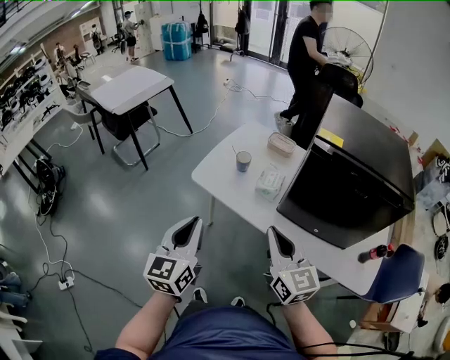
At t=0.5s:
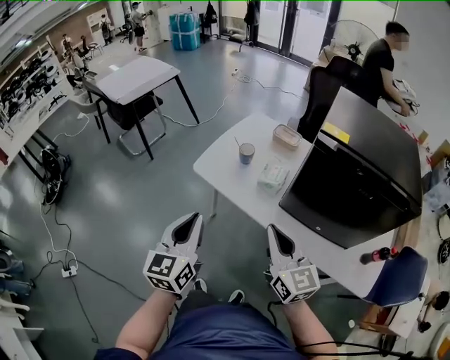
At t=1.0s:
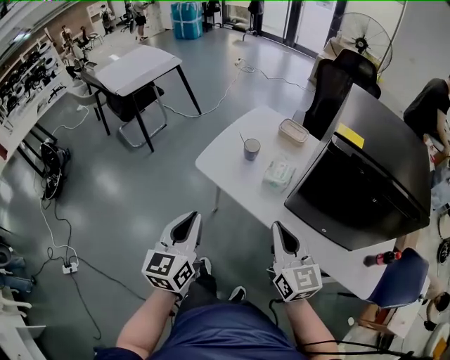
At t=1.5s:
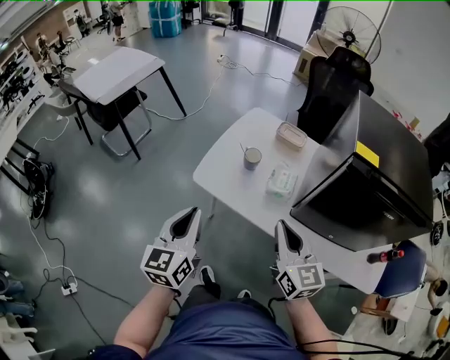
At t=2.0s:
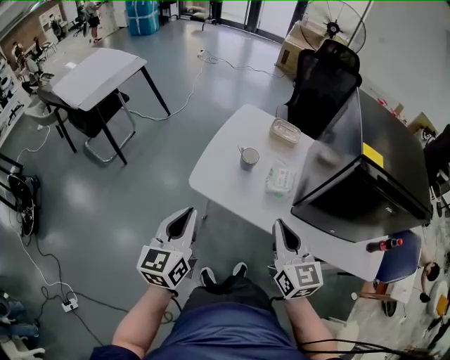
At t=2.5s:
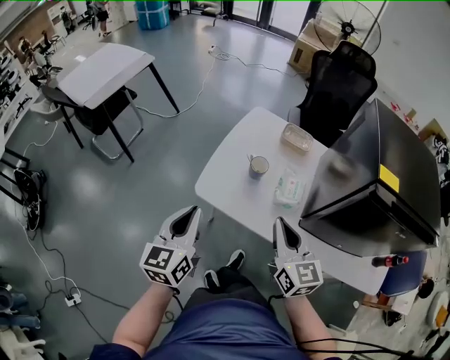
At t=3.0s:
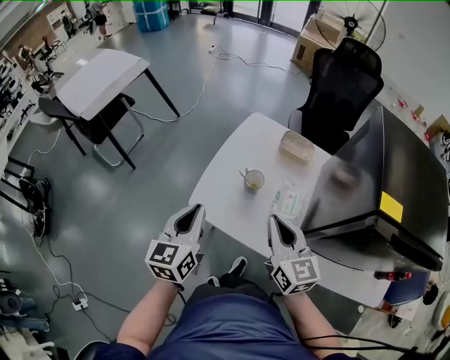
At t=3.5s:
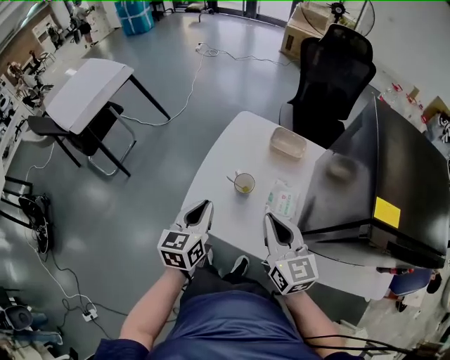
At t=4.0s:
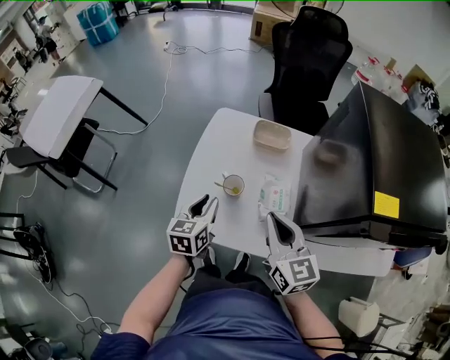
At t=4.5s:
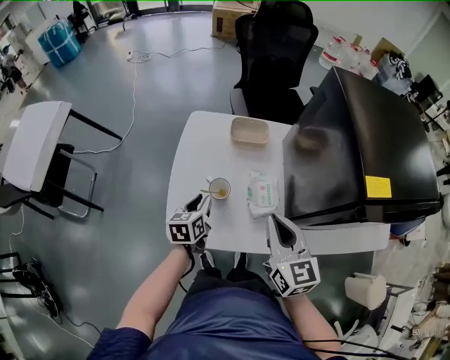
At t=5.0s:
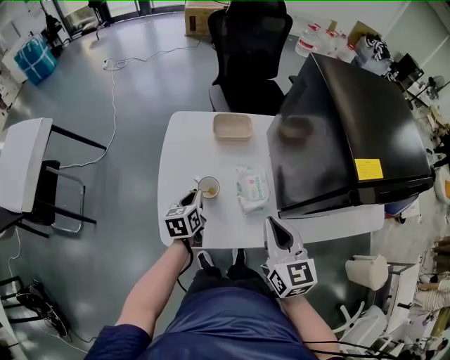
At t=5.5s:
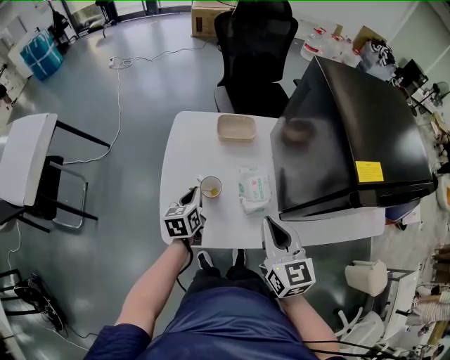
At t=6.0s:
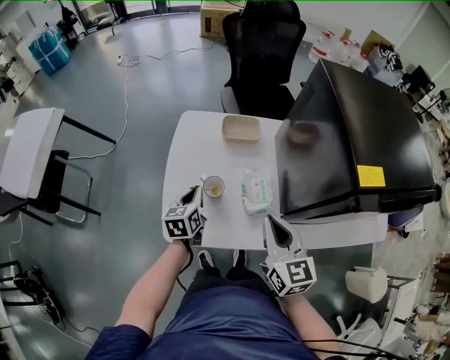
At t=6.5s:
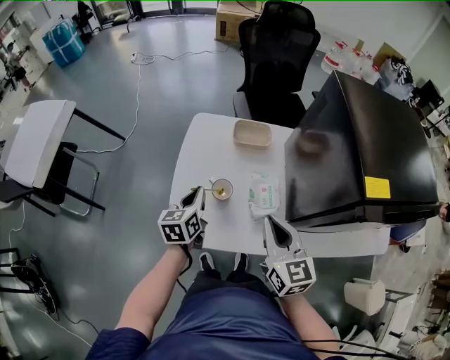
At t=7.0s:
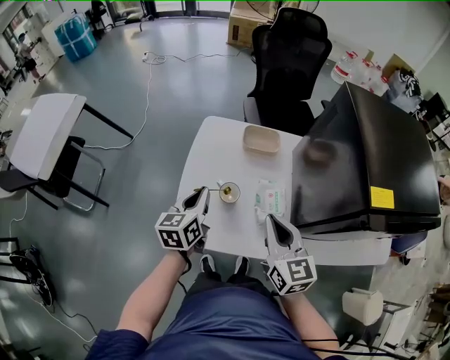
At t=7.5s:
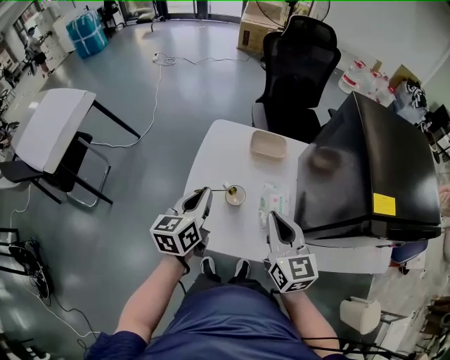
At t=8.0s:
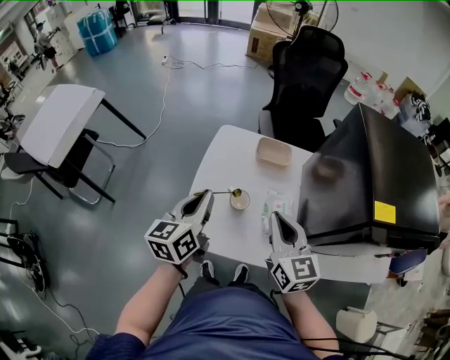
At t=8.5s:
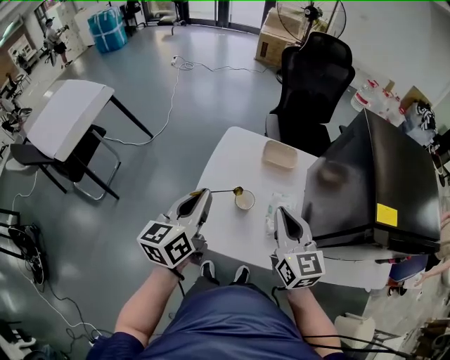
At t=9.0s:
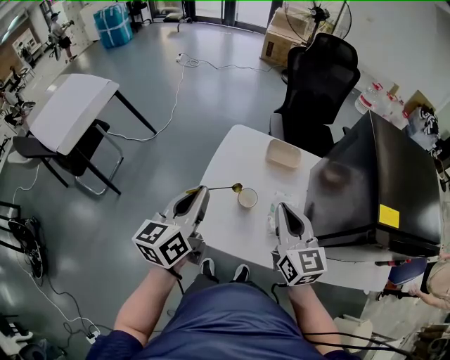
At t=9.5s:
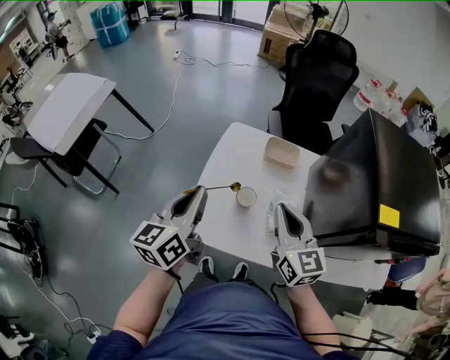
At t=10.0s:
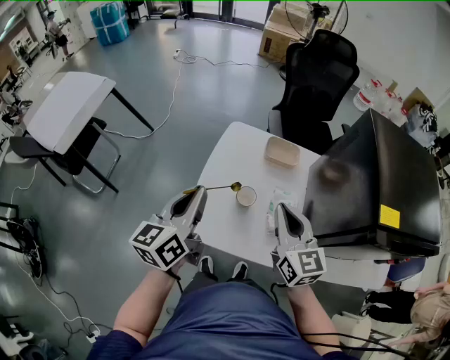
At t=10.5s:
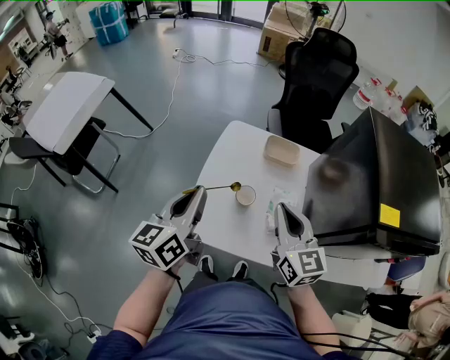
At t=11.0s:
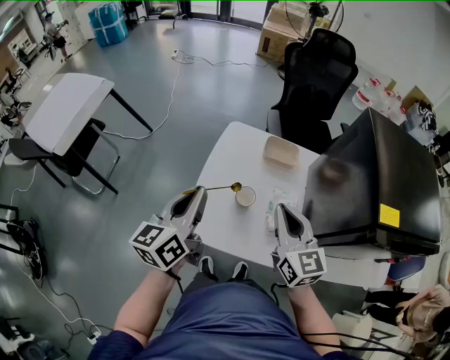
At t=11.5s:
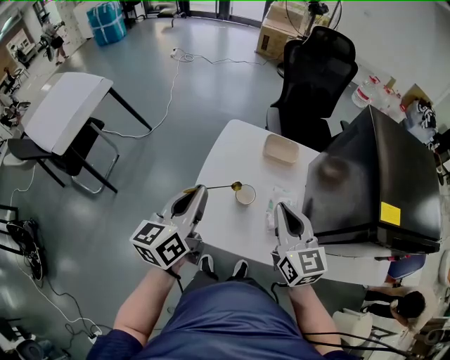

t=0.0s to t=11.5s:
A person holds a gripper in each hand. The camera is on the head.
t=0.0s to t=2.0s: The two grippers go about 15 cm forward and to the left.
t=2.0s to t=4.0s: The right gripper heads forward, covering some 20 cm. The left gripper is displaced forward, downward and to the right by some 30 cm, and swivels approximately 30 degrees.
t=4.0s to t=6.0s: The left gripper shifts roughly 5 cm forward.
t=6.0s to t=7.5s: The right gripper ends up some 5 cm from where it was. The left gripper is displaced upward by approximately 15 cm.
t=7.5s to t=9.5s: The left gripper shifts about 10 cm upward.
t=9.5s to t=11.5s: Neither gripper changes place.

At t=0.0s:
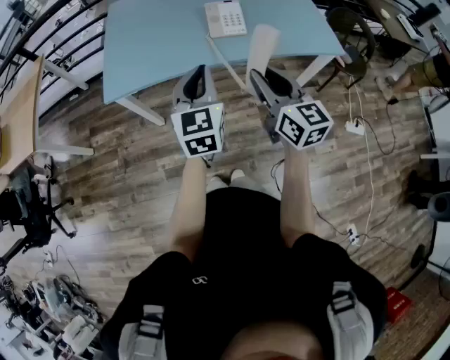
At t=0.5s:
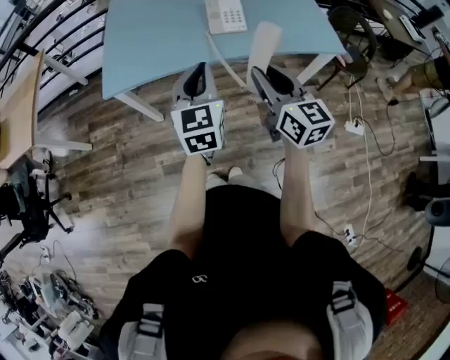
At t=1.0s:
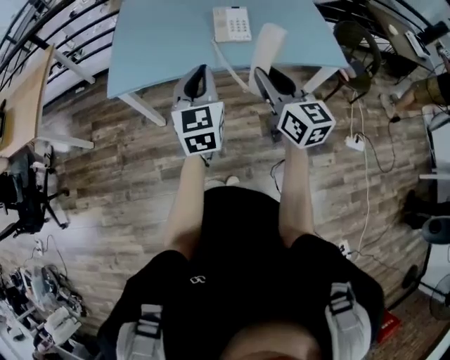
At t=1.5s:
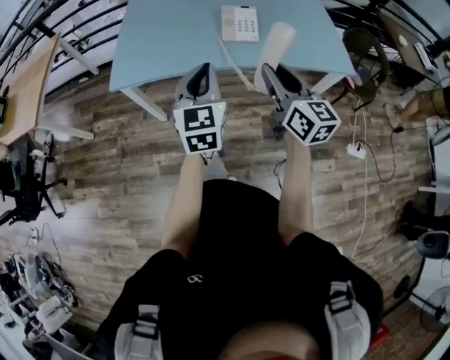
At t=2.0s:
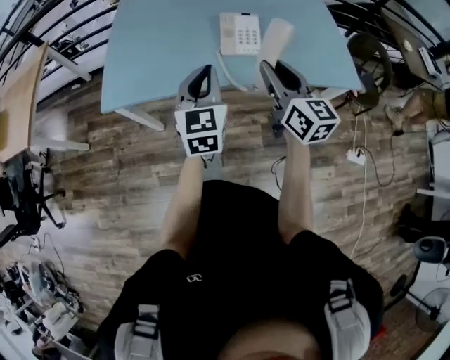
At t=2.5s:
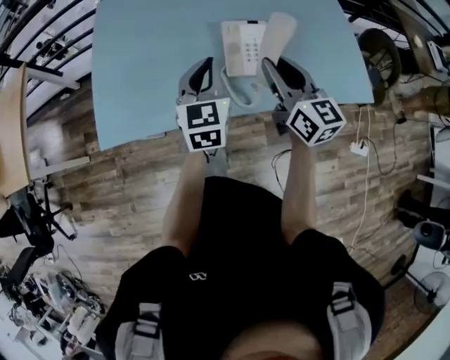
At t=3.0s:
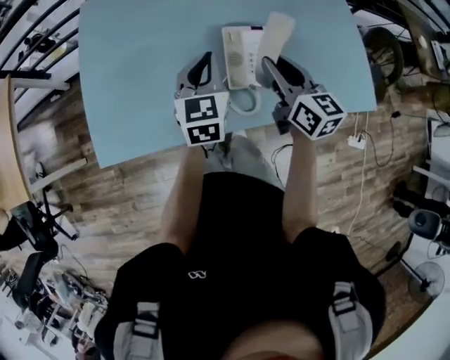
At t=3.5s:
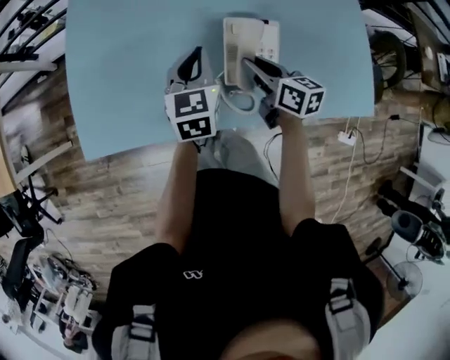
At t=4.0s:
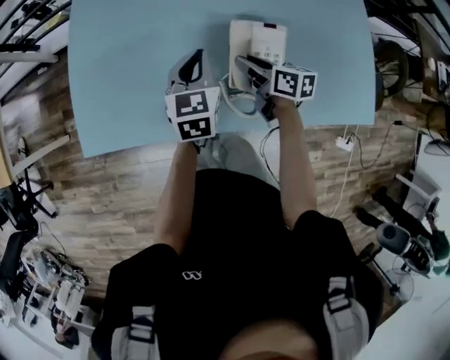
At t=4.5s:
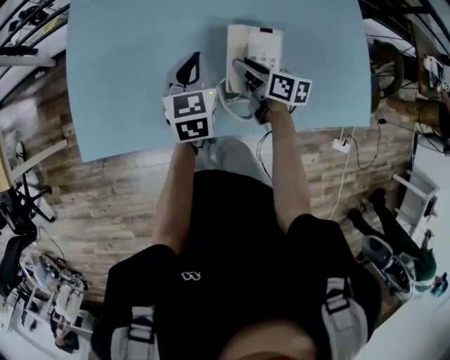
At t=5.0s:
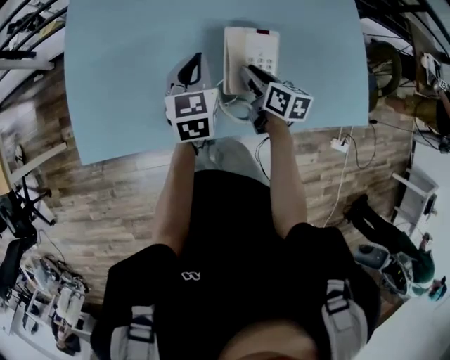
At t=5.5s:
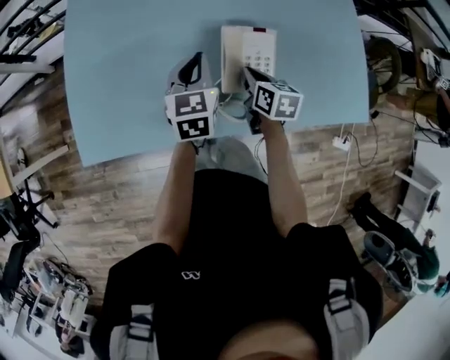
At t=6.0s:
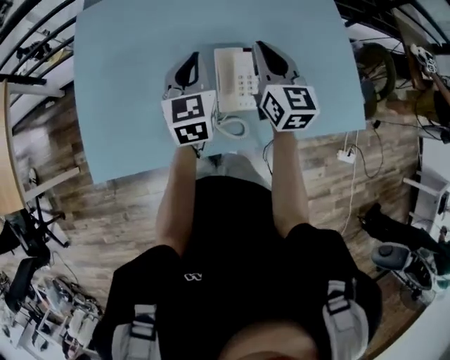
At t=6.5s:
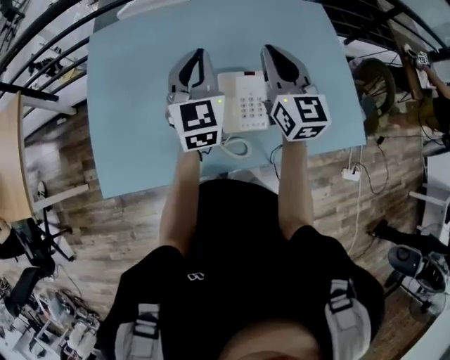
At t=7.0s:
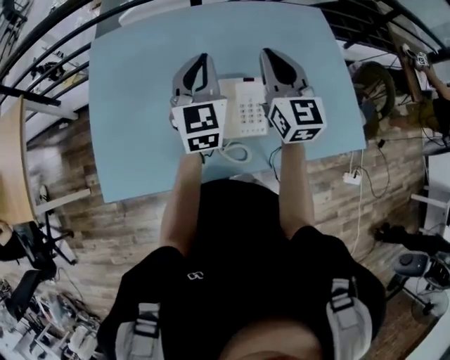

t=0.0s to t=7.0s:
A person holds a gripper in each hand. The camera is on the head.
t=0.0s to t=2.0s: Both grippers move forward, roughly 15 cm.
t=2.0s to t=3.5s: The left gripper travels forward by roughly 30 cm; the right gripper goes some 35 cm forward and downward, and turns by about 40 degrees.
t=3.5s to t=5.0s: The grippers make only small movements.
t=5.0s to t=7.0s: The right gripper travels upward by roughly 25 cm, tilts its fingers roughly 30 degrees upward, and closes. The left gripper travels upward by about 20 cm, and changes its angle by approximately 30 degrees.

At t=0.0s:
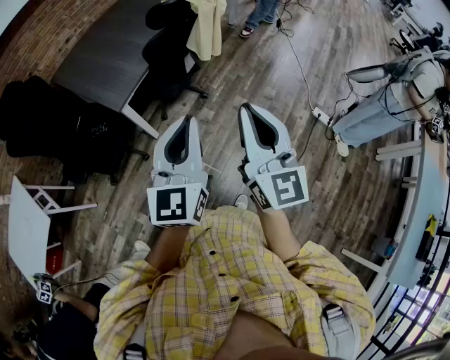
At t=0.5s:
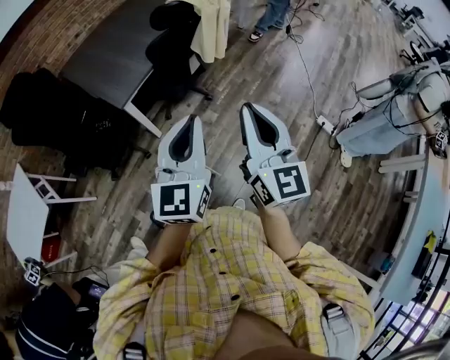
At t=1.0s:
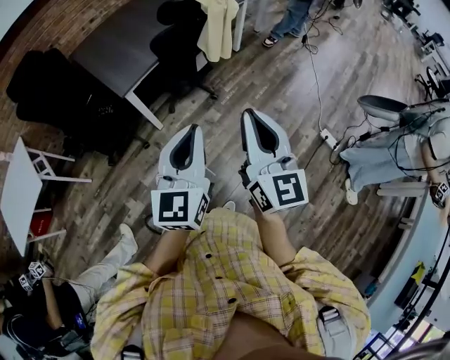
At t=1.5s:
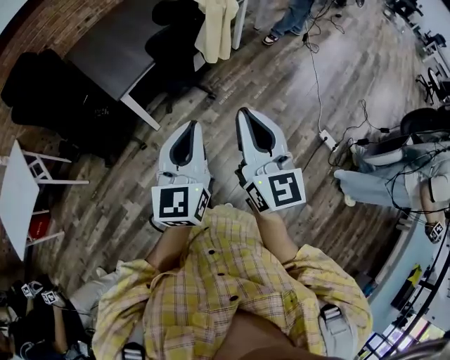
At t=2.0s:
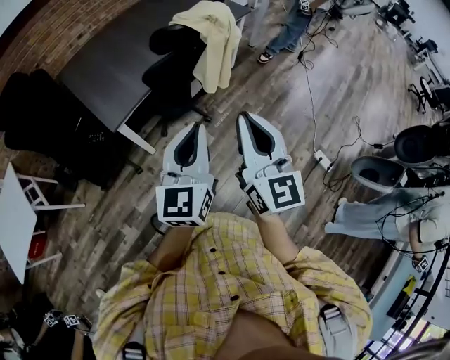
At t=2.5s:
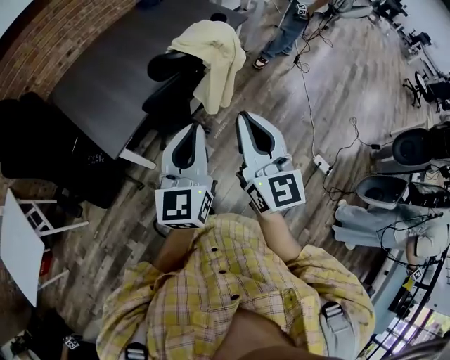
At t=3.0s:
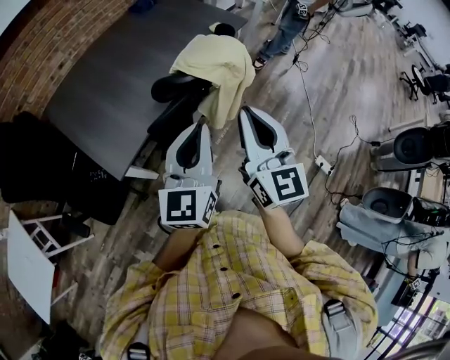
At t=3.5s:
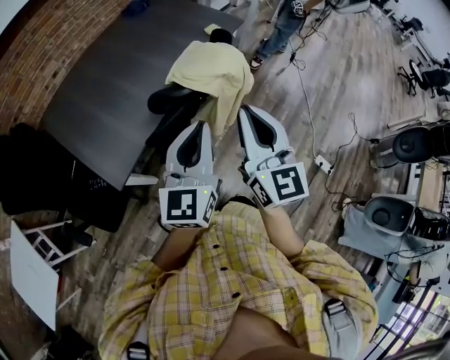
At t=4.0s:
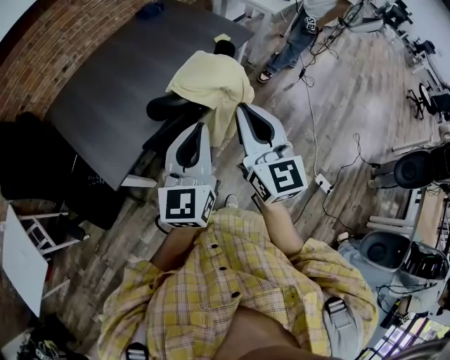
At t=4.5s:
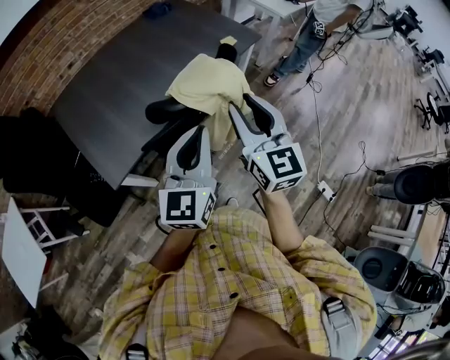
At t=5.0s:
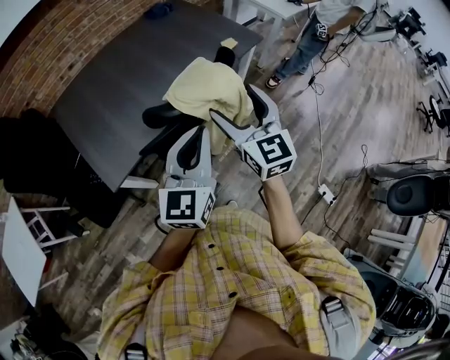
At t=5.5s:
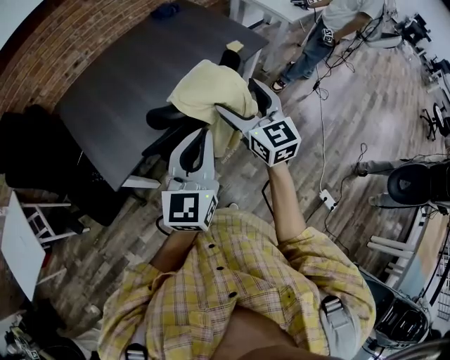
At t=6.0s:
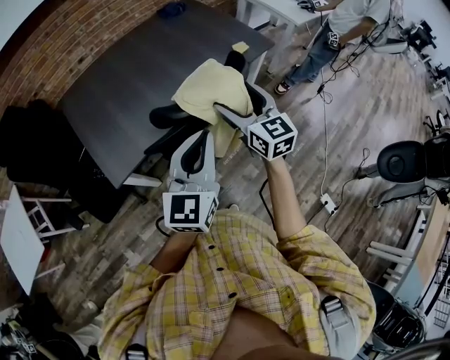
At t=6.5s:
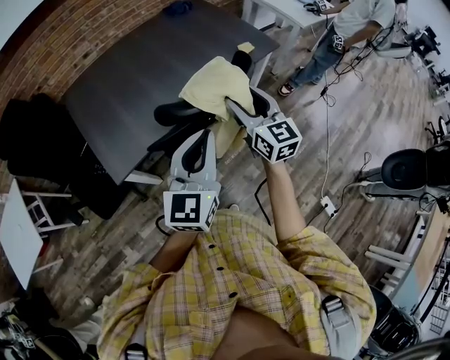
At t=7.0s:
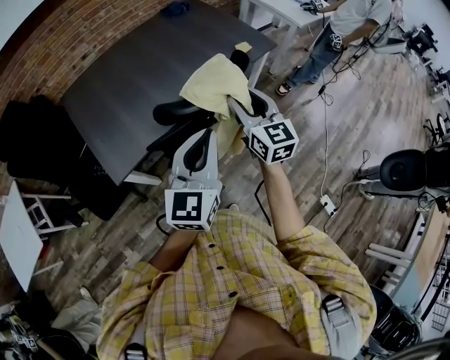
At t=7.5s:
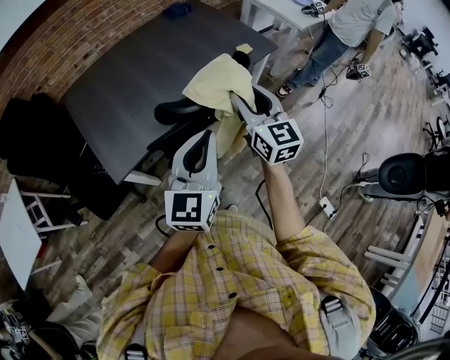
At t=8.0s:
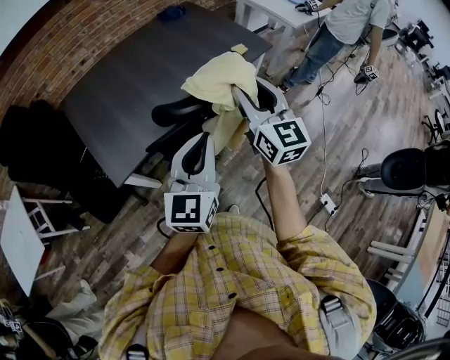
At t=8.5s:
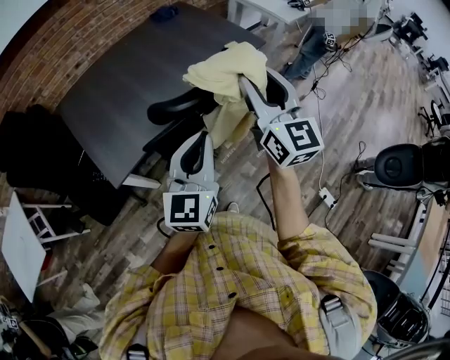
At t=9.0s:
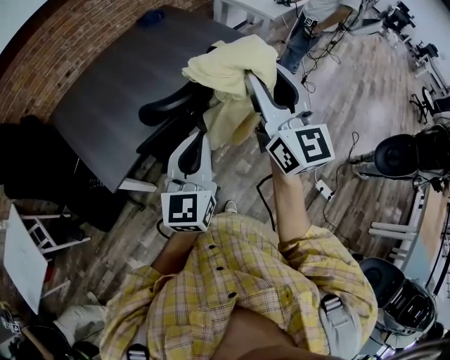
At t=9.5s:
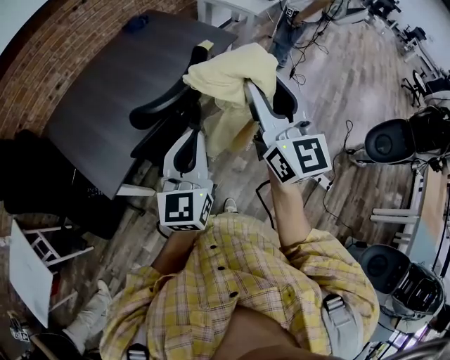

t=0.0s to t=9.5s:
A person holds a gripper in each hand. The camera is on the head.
t=0.0s to t=2.0s: The right gripper moves forward, about 15 cm; the left gripper moves forward and to the right, about 15 cm.
t=2.0s to t=4.0s: Both grippers travel together forward, some 30 cm.
t=4.0s to t=5.5s: The right gripper moves forward and downward, some 15 cm, and opens its fingers.
t=5.5s to t=7.5s: The right gripper closes up.
t=7.5s to t=9.5s: The right gripper heads upward, backward and to the right, covering approximately 20 cm, and turns by roughly 20 degrees. The left gripper changes place by roughly 5 cm.
